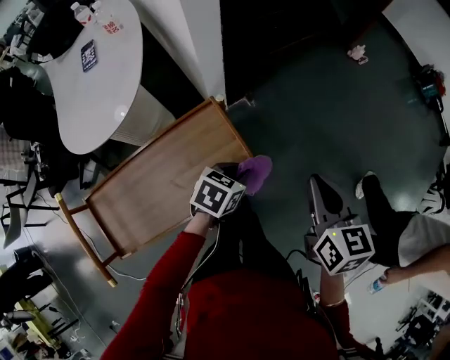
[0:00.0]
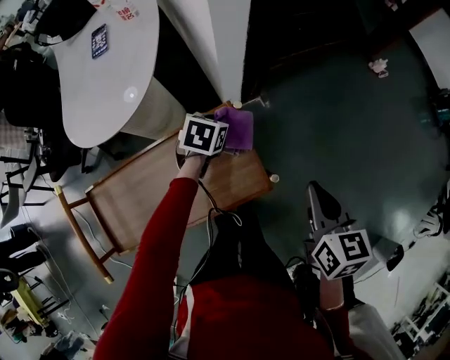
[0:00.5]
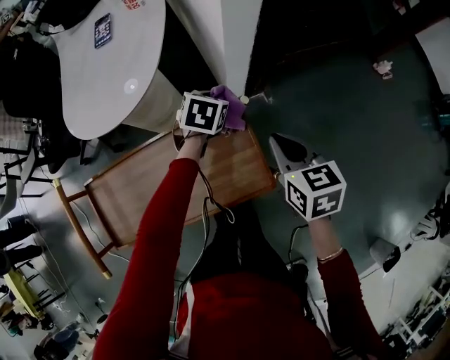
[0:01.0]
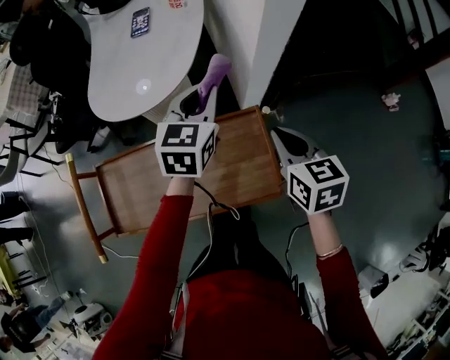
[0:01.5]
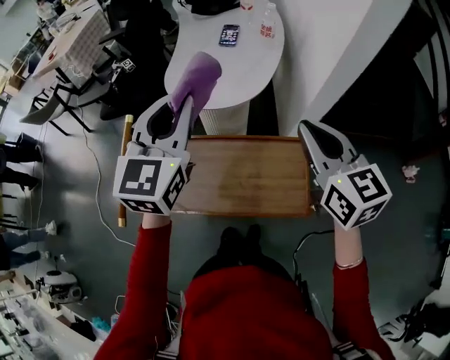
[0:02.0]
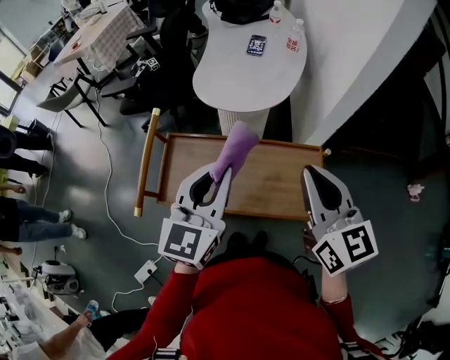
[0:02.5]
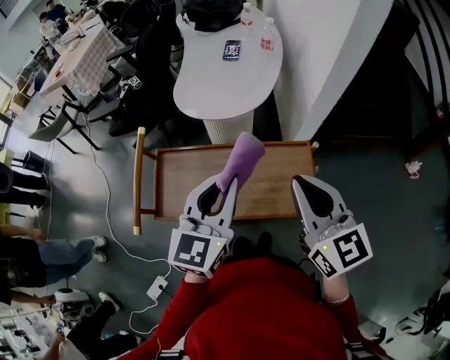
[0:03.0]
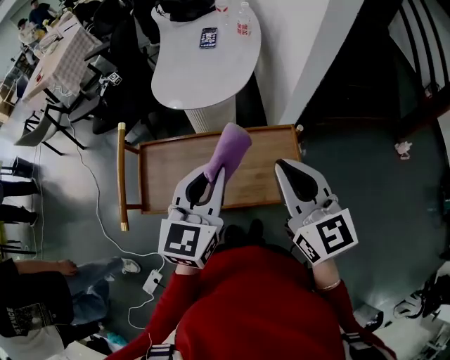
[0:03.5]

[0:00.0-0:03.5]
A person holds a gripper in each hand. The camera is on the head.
0:00.0 to 0:02.0: The left gripper goes approximately 35 cm upward, and angles its fingers upward, by roughly 50 degrees. The right gripper ends up roughly 30 cm from where it was, and swivels roughly 50 degrees.
0:02.0 to 0:03.5: The left gripper goes some 15 cm backward and downward, while the right gripper moves backward, some 10 cm.

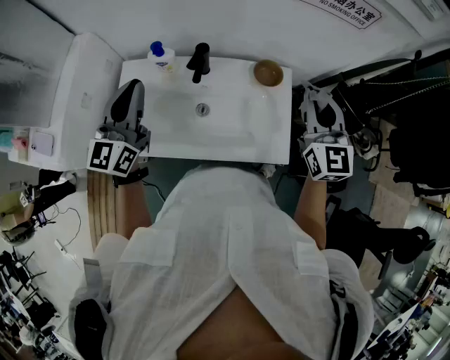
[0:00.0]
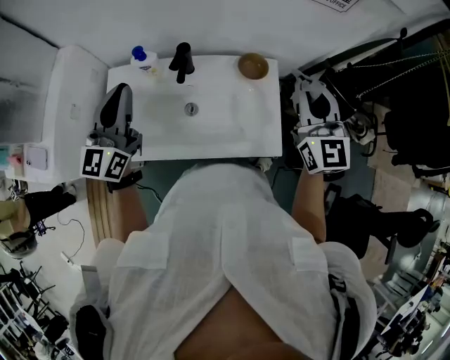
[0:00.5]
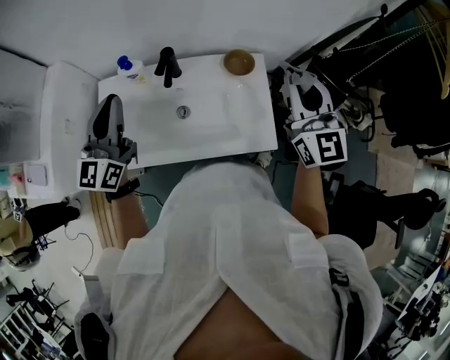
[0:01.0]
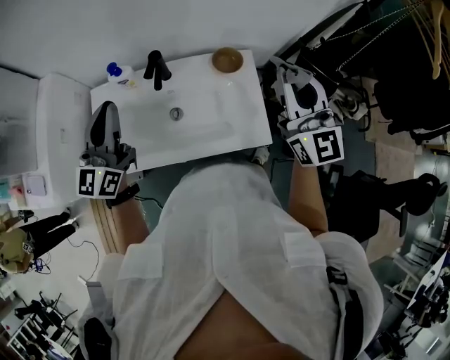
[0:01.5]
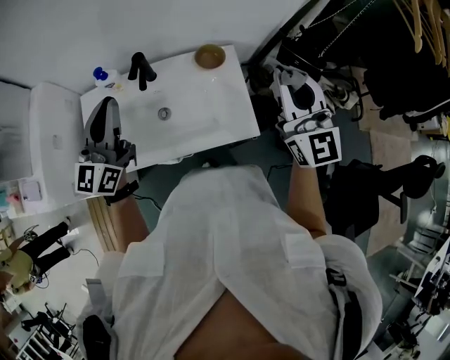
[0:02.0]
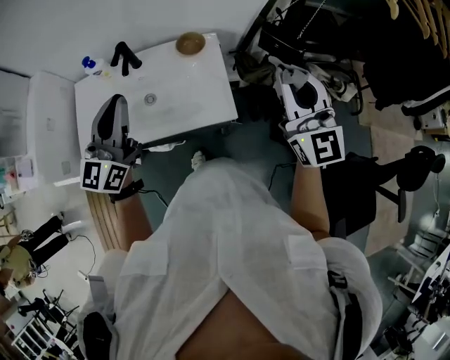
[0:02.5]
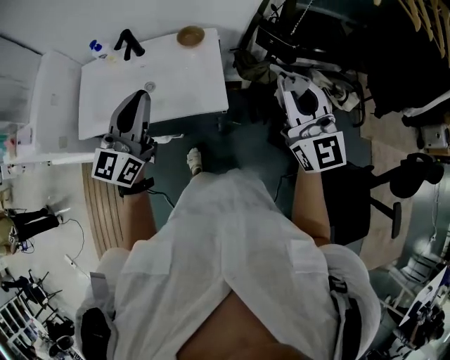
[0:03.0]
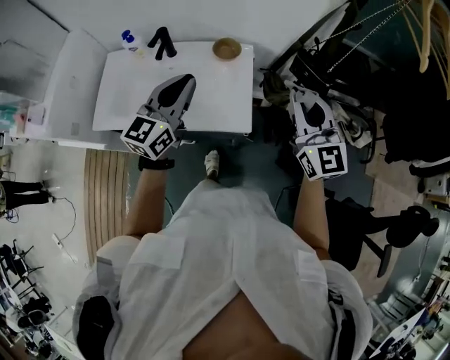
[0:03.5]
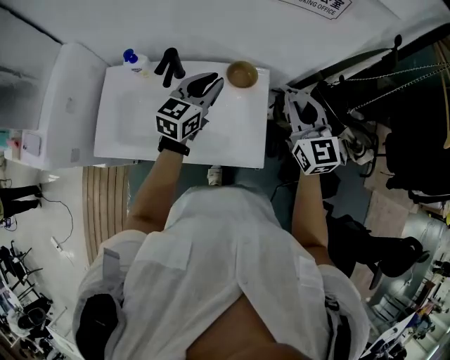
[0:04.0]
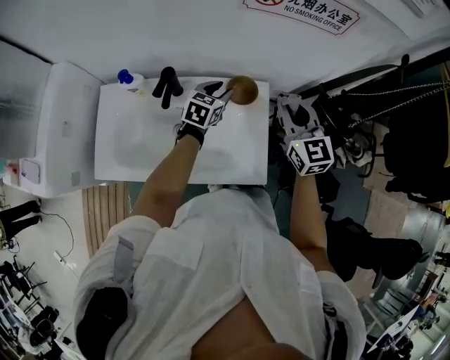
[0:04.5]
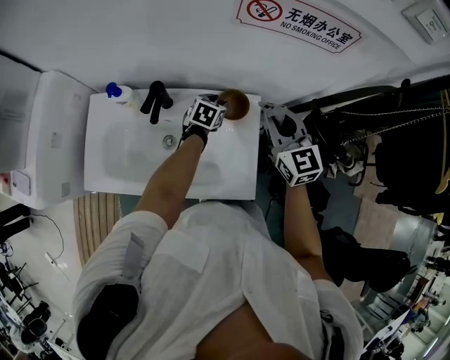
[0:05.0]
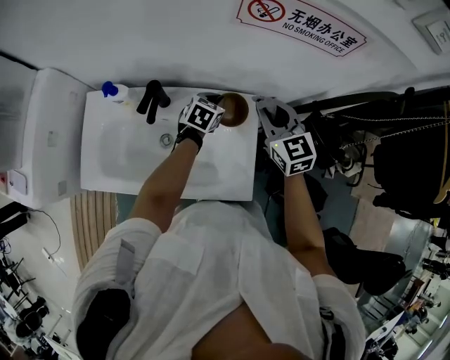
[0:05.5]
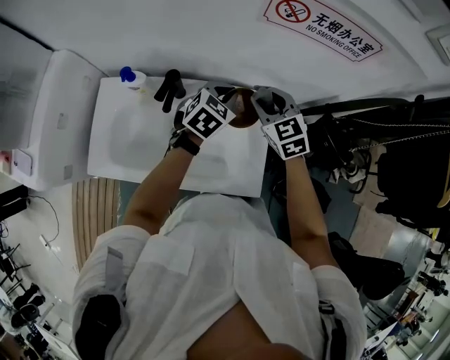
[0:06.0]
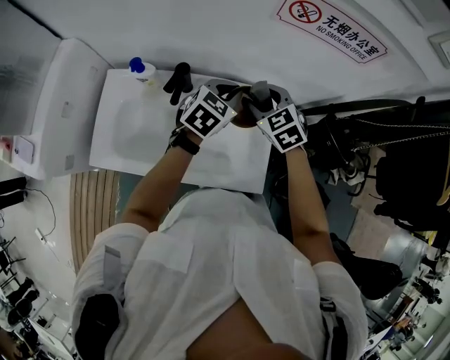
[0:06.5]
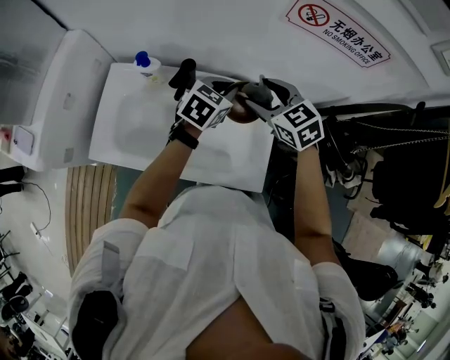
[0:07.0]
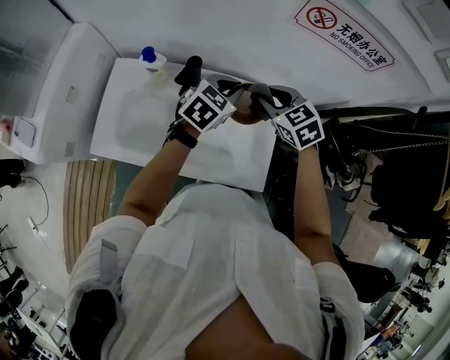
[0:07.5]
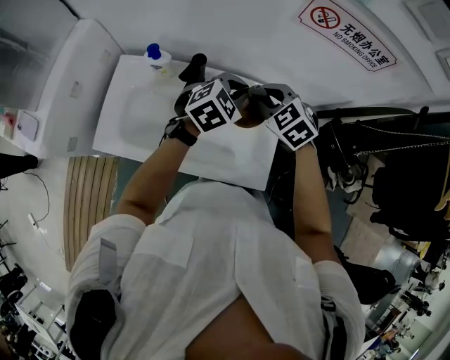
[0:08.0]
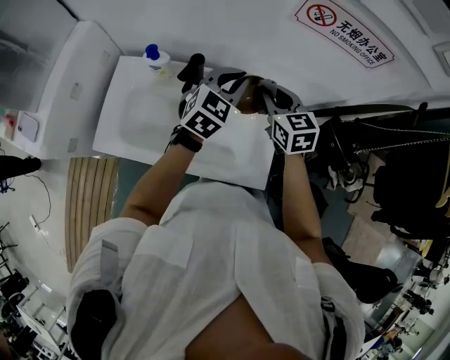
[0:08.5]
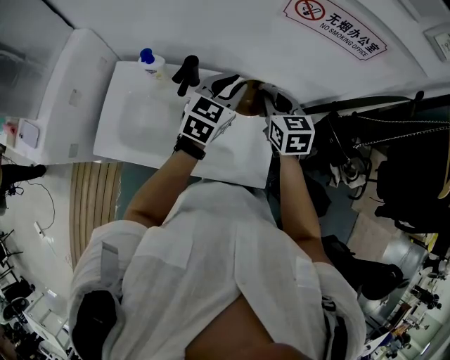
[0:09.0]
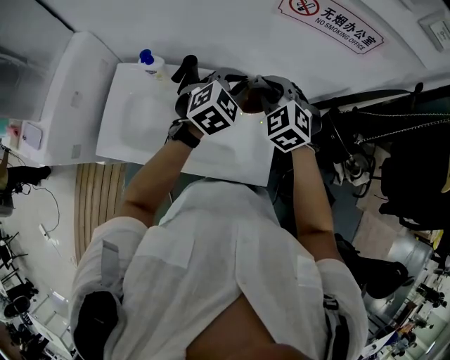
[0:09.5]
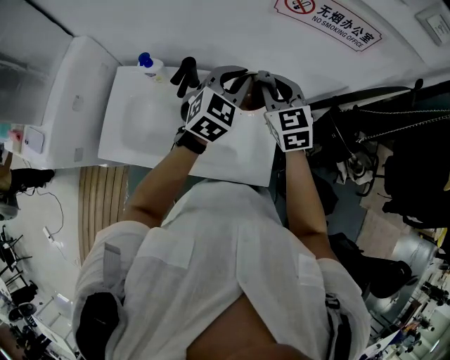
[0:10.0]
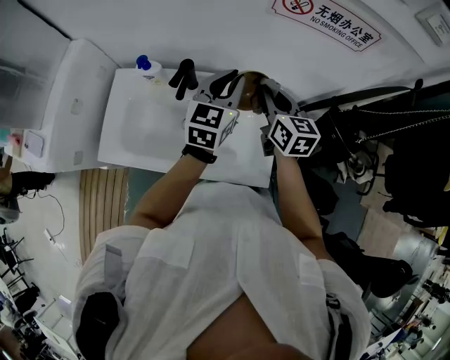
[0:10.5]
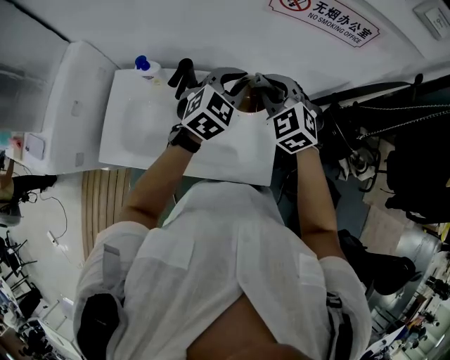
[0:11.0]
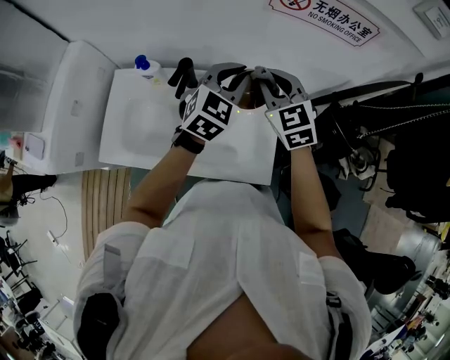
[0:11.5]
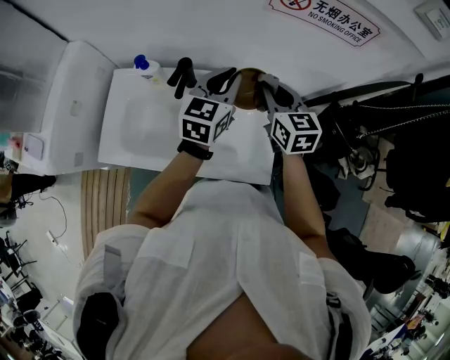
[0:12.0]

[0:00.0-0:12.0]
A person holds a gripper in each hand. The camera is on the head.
0:00.0 to 0:02.0: The right gripper shifts about 10 cm backward, to the right and upward; the left gripper heads to the right, covering approximately 10 cm.
0:02.0 to 0:04.0: The left gripper moves to the right, downward and forward, roughly 25 cm, and changes its angle by approximately 20 degrees. The right gripper heads forward and downward, covering approximately 15 cm, and rotates about 20 degrees.
0:04.0 to 0:06.0: The right gripper goes roughly 20 cm forward, to the left and downward, rotates about 30 degrees, and opens up, while the left gripper is displaced forward by some 10 cm, travels downward and back again, some 20 cm each way, turns by about 30 degrees, and opens, then closes again.
0:06.0 to 0:08.0: The left gripper ends up about 5 cm from where it was. The right gripper moves to the left, about 5 cm, changes its angle by roughly 30 degrees, and opens and closes again.
0:08.0 to 0:10.0: Both grippers move upward, approximately 5 cm. The left gripper changes its angle by roughly 20 degrees. The right gripper changes its angle by some 30 degrees.
0:10.0 to 0:12.0: The right gripper changes its angle by about 20 degrees. Meanwhile the left gripper rotates some 30 degrees.

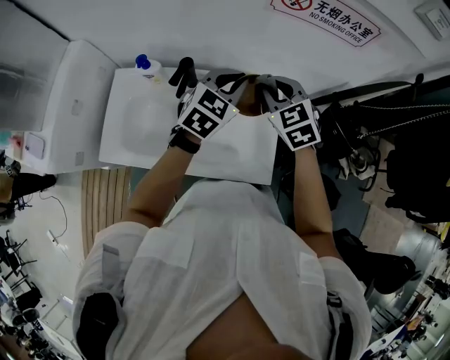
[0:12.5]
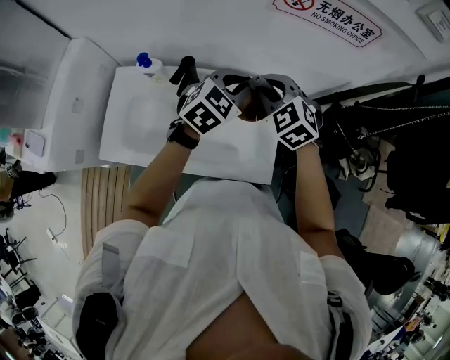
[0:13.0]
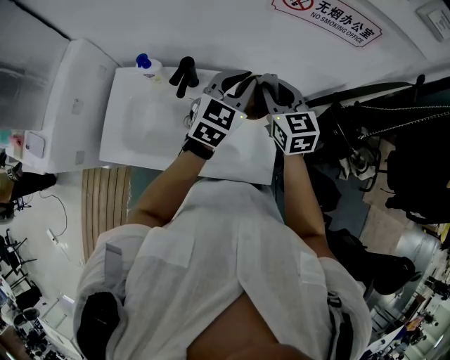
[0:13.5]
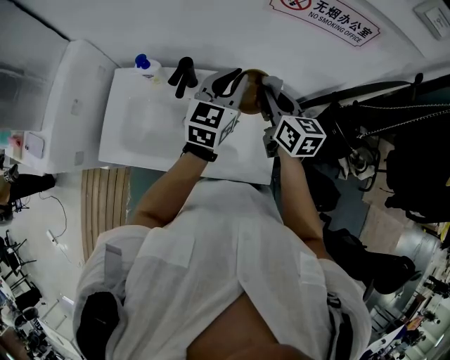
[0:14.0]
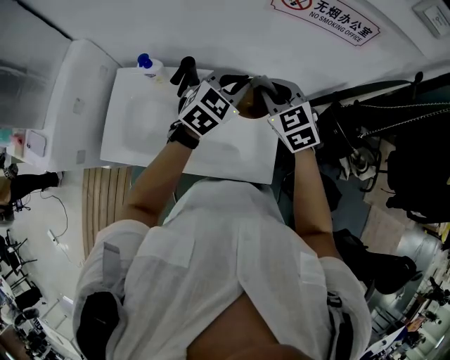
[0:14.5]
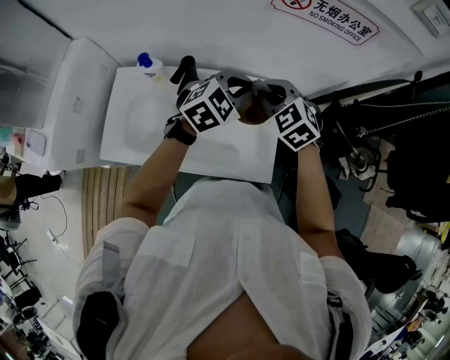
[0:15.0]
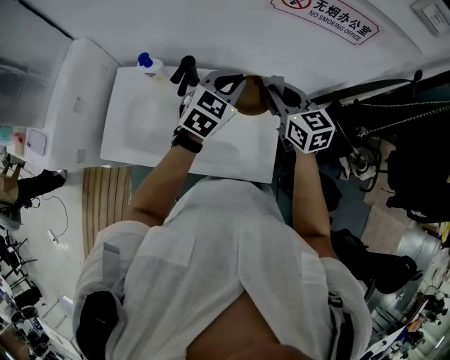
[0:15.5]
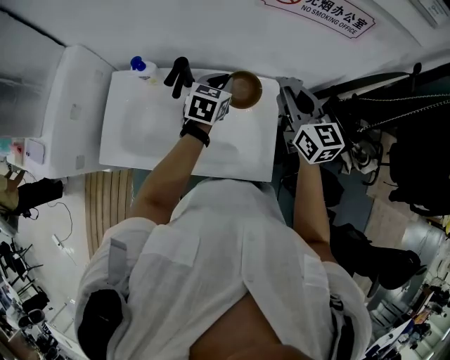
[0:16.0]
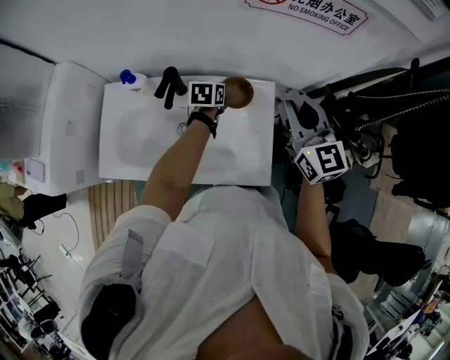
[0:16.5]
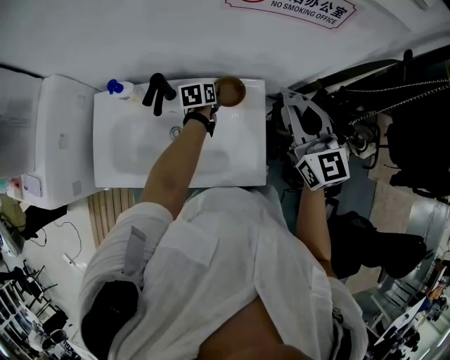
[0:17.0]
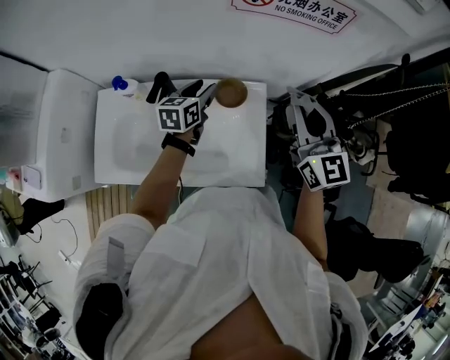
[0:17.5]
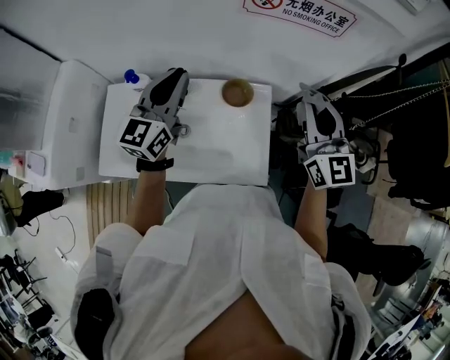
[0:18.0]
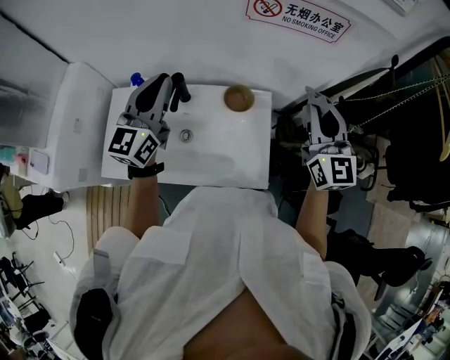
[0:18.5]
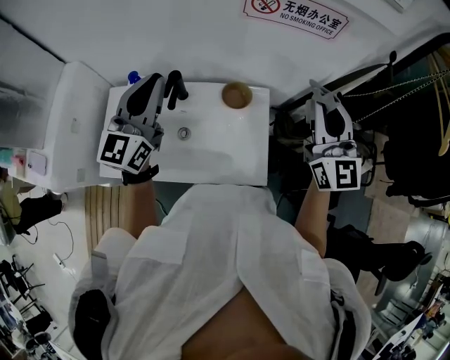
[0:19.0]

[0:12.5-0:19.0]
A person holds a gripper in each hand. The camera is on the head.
0:14.5 to 0:17.0: The right gripper travels to the right and upward by roughly 15 cm, and turns by about 40 degrees; the left gripper heads downward and forward, covering roughly 25 cm, and rotates around the line of its fingers by approximately 50 degrees, counterclockwise from behind.
0:17.0 to 0:19.0: The left gripper goes roughly 40 cm upward and backward, points its fingers about 50 degrees further upward, and opens and closes again; the right gripper travels upward by approximately 10 cm.

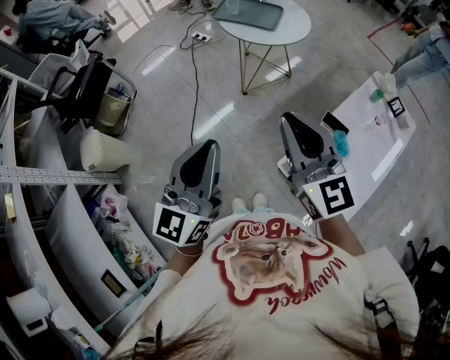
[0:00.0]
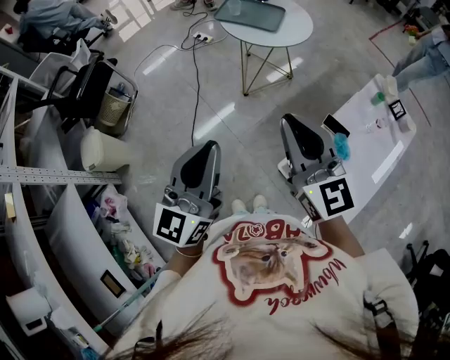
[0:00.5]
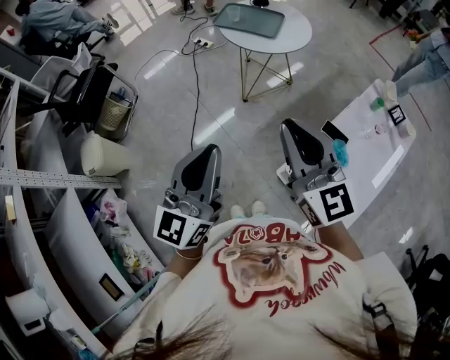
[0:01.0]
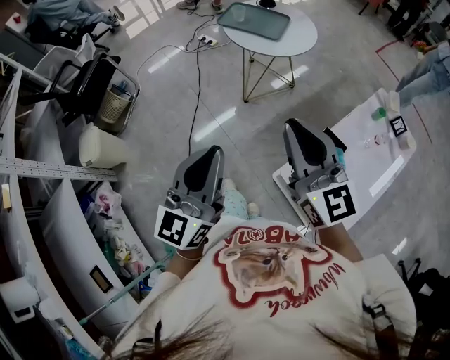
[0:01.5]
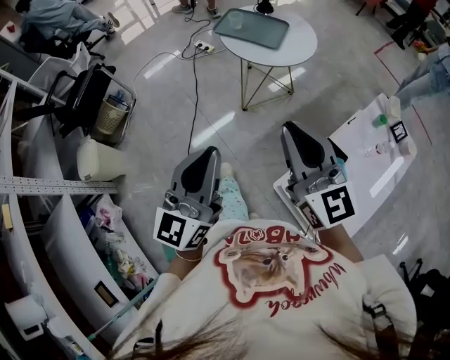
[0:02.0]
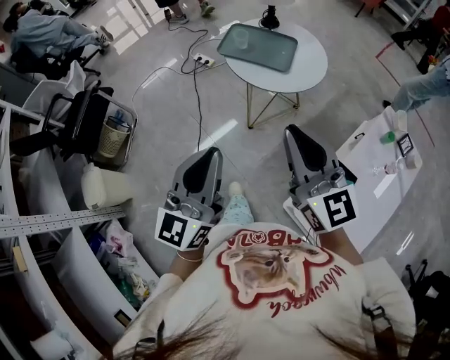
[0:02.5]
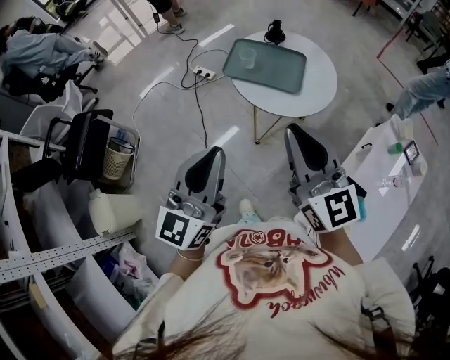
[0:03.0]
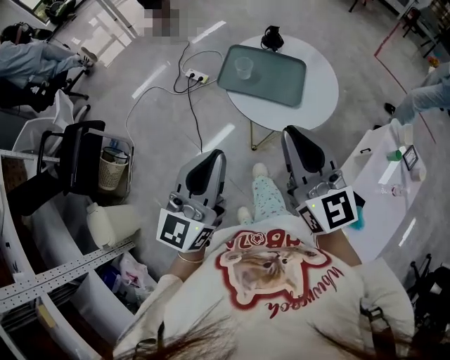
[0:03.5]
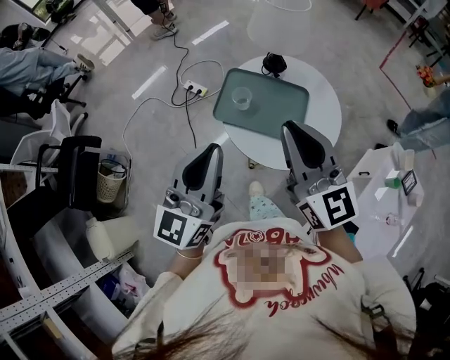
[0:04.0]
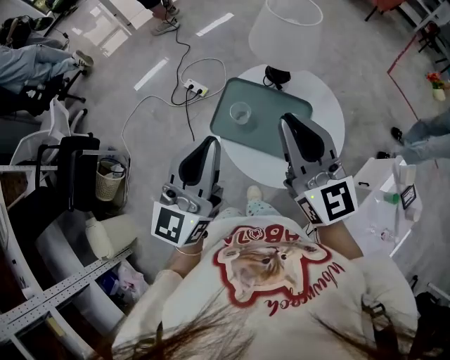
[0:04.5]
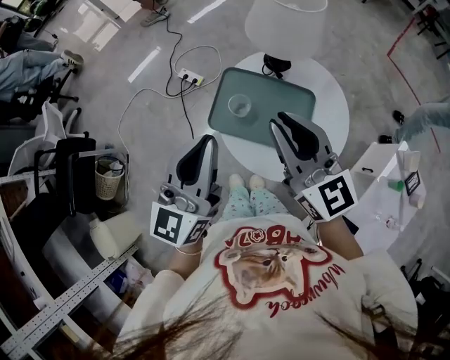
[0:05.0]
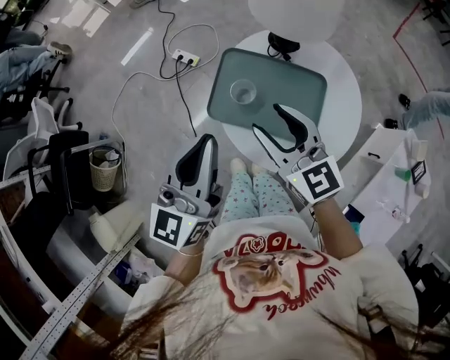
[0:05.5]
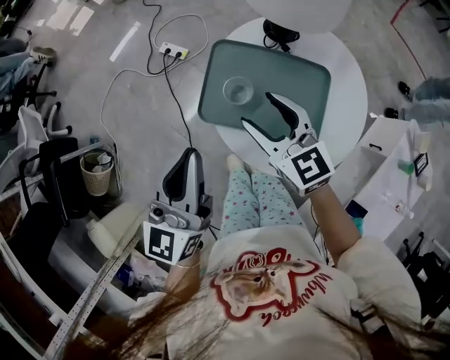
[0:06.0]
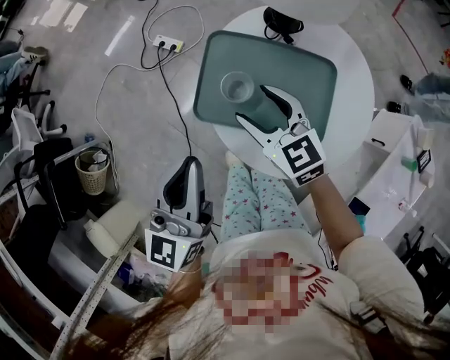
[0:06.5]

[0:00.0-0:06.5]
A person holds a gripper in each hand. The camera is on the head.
0:00.0 to 0:02.0: The two grippers go some 10 cm forward.
0:02.0 to 0:04.5: Both grippers are carried forward, approximately 60 cm.
0:04.5 to 0:06.5: The right gripper heads downward, covering some 30 cm, angles its fingers downward, by about 30 degrees, and opens its fingers. The left gripper heads downward, covering some 15 cm.
